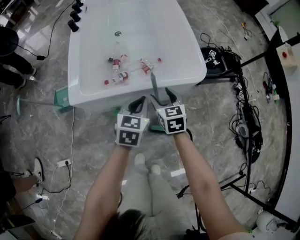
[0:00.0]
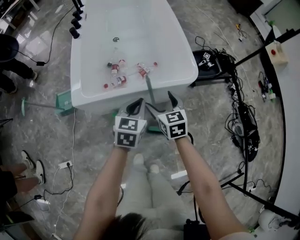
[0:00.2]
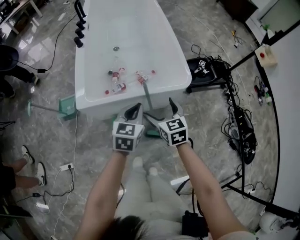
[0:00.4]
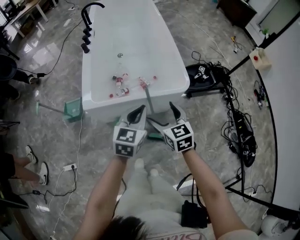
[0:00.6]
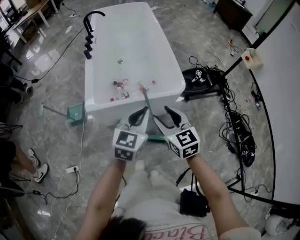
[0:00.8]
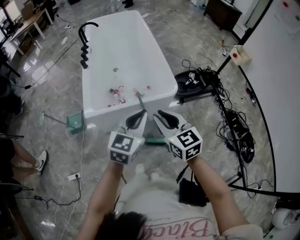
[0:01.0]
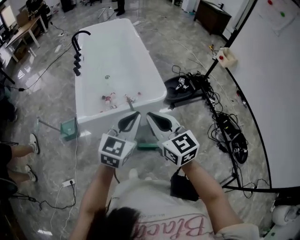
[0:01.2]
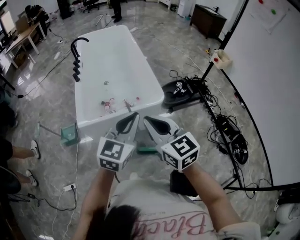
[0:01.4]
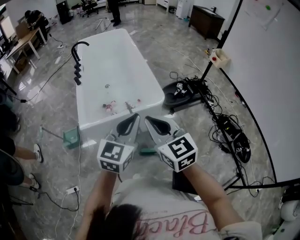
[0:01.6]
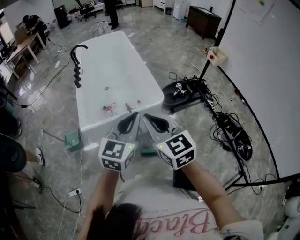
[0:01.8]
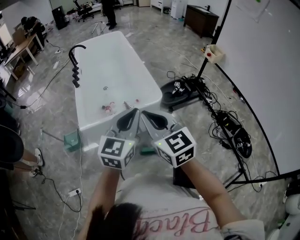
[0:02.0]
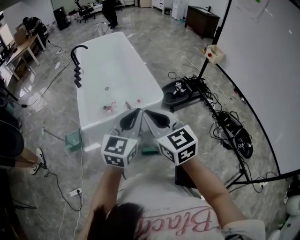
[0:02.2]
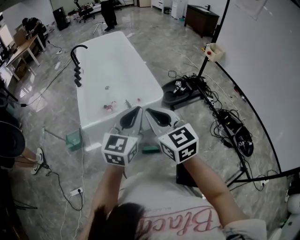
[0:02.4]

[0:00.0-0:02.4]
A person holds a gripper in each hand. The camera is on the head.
0:00.0 to 0:01.2: Both grippers travel together upward and backward, approximately 35 cm. The right gripper turns by roughly 30 degrees, and closes its fingers; the left gripper swivels about 30 degrees.
0:01.2 to 0:02.4: The left gripper shifts by approximately 5 cm. The right gripper moves roughly 5 cm.

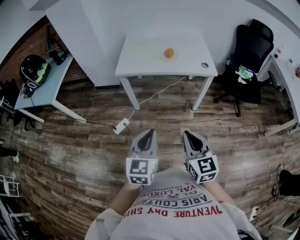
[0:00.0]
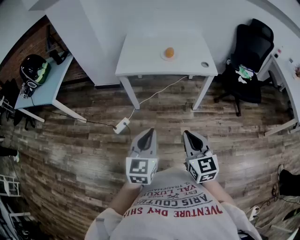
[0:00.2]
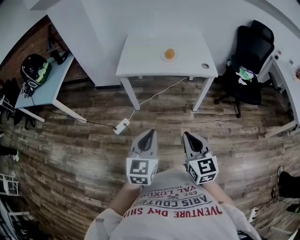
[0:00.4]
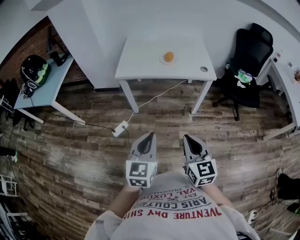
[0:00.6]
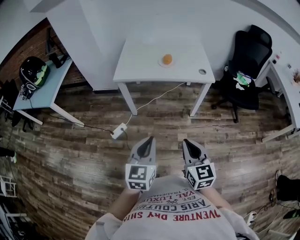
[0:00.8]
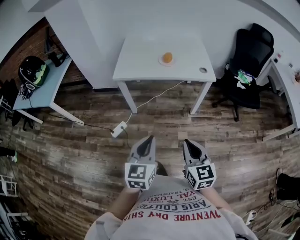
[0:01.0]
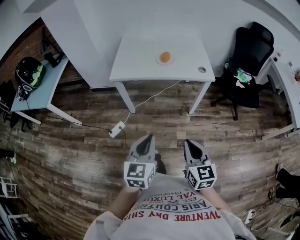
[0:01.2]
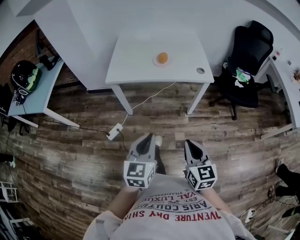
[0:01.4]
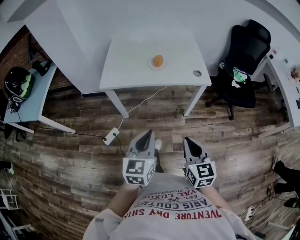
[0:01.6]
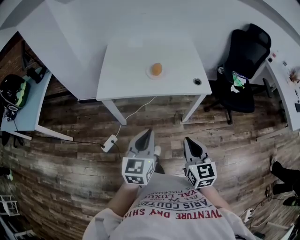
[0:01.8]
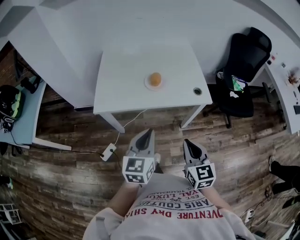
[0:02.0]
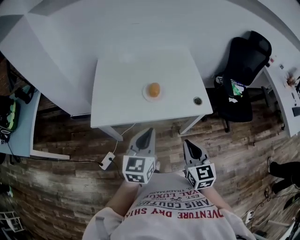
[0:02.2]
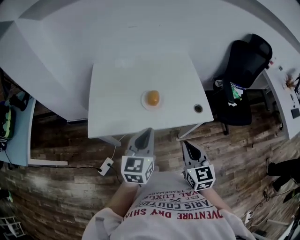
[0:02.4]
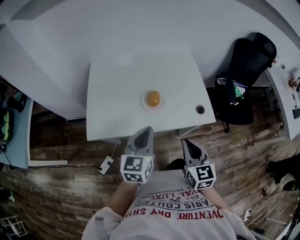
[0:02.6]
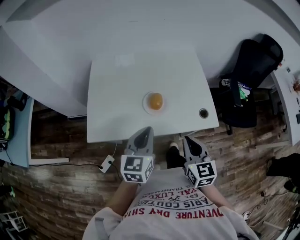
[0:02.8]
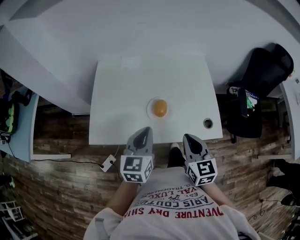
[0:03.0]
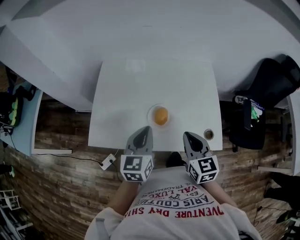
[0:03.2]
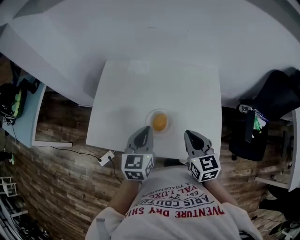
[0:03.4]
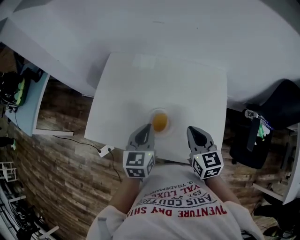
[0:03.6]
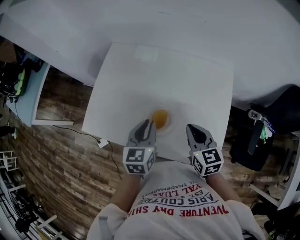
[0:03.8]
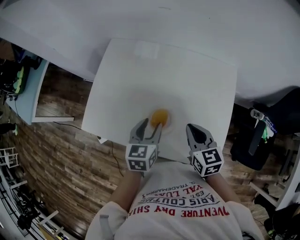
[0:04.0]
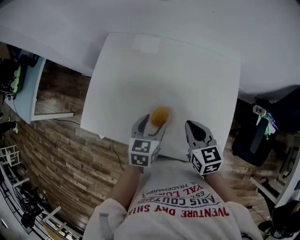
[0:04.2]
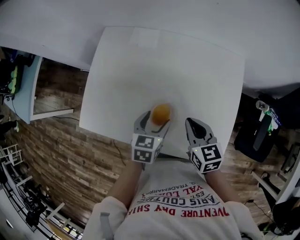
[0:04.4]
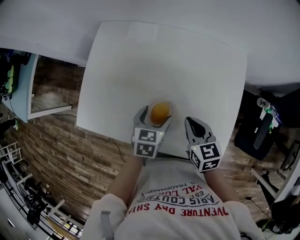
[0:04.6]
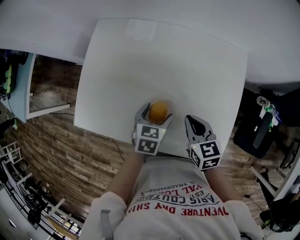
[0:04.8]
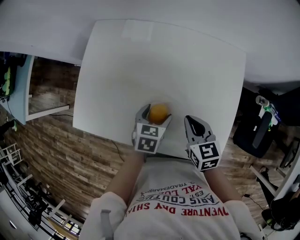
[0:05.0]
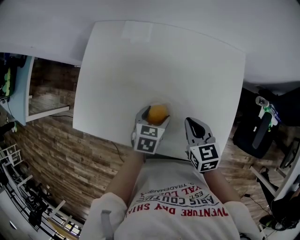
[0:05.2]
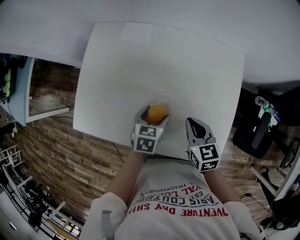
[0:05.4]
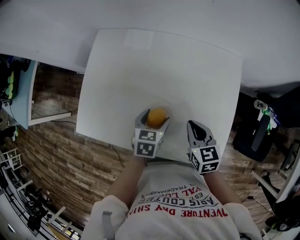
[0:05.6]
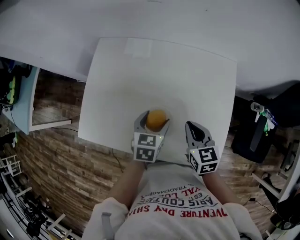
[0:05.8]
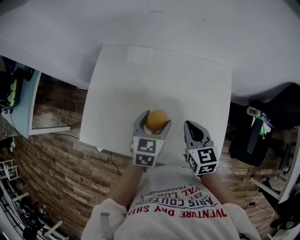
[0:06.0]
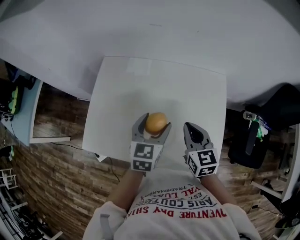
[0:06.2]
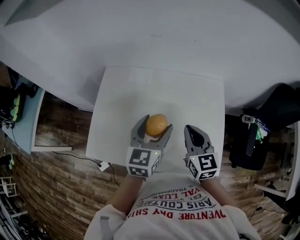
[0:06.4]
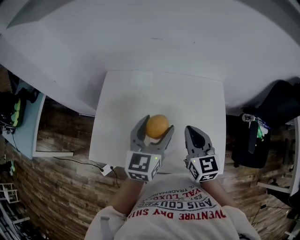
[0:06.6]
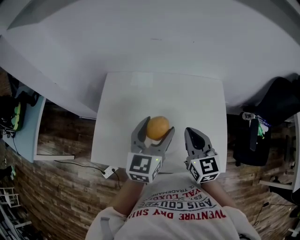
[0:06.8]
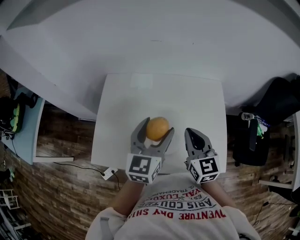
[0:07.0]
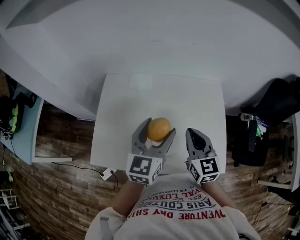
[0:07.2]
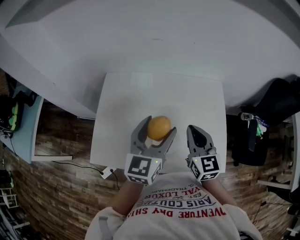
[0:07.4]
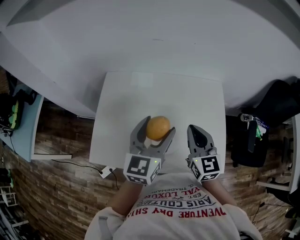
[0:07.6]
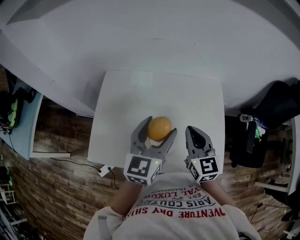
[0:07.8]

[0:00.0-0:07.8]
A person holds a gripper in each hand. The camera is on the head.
0:00.0 to 0:01.6: The right gripper goes about 10 cm forward and to the right. Meanwhile the left gripper is displaced forward by approximately 15 cm.
0:01.6 to 0:03.2: The pair of grippers is taken forward, about 50 cm.
0:03.2 to 0:04.6: Both grippers move downward and forward, about 20 cm. The right gripper changes its angle by roughly 20 degrees, while the left gripper rotates about 30 degrees, and opens up.
0:04.6 to 0:06.2: The grippers both shift upward by about 10 cm. The left gripper turns by approximately 20 degrees.
0:06.2 to 0:07.8: The left gripper moves upward, roughly 10 cm. Meanwhile the right gripper is displaced upward by approximately 5 cm.

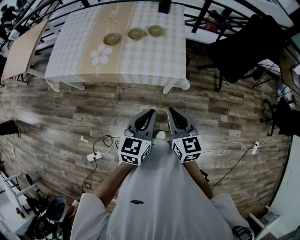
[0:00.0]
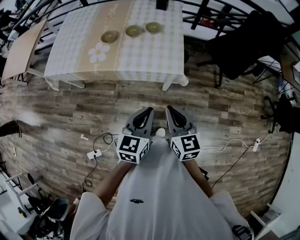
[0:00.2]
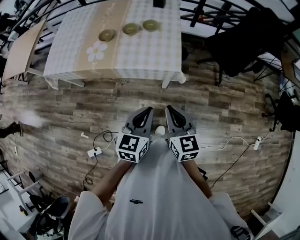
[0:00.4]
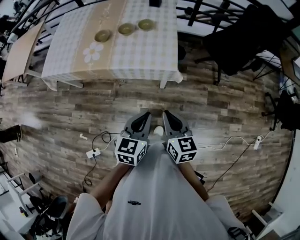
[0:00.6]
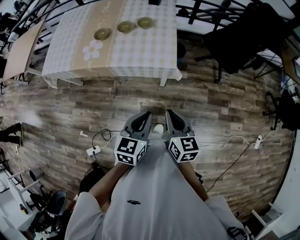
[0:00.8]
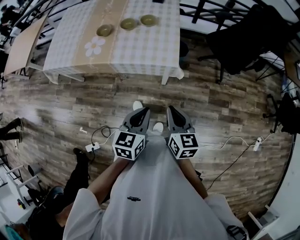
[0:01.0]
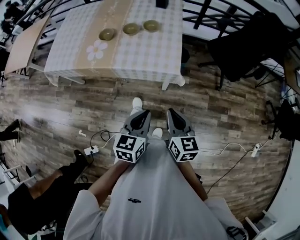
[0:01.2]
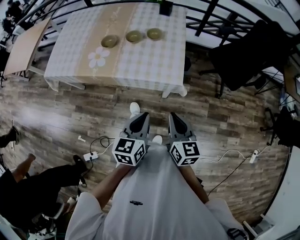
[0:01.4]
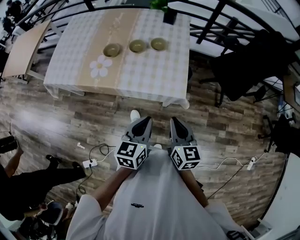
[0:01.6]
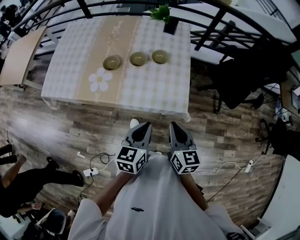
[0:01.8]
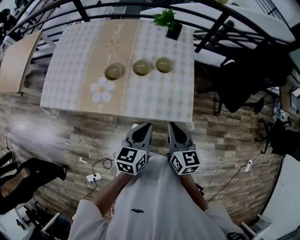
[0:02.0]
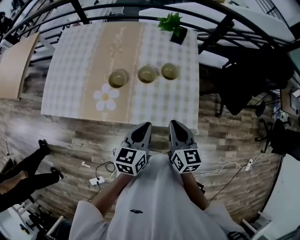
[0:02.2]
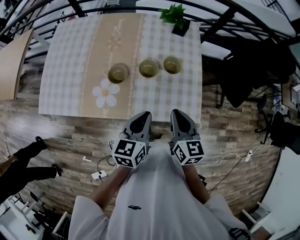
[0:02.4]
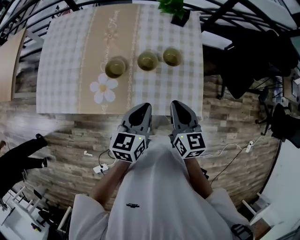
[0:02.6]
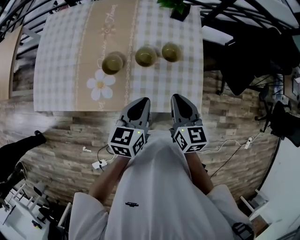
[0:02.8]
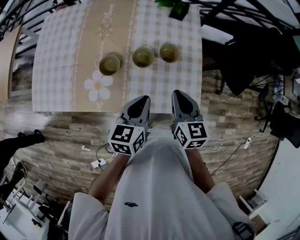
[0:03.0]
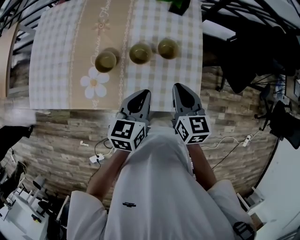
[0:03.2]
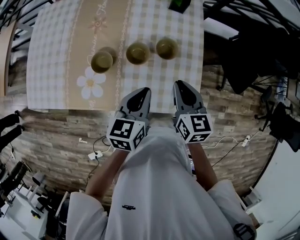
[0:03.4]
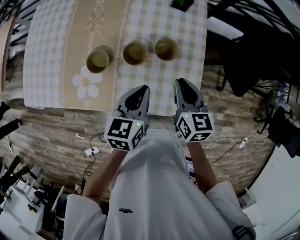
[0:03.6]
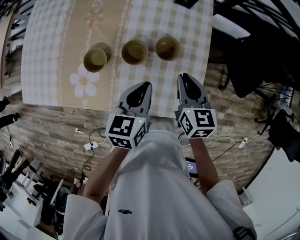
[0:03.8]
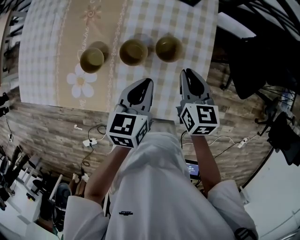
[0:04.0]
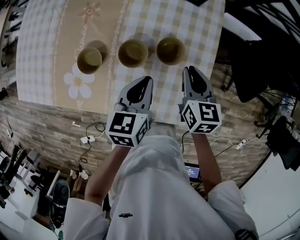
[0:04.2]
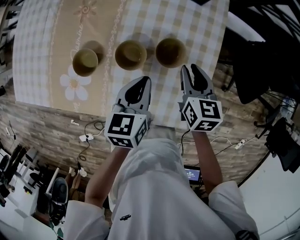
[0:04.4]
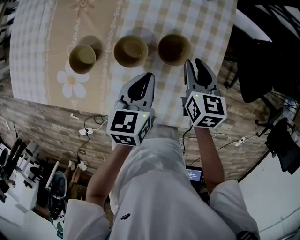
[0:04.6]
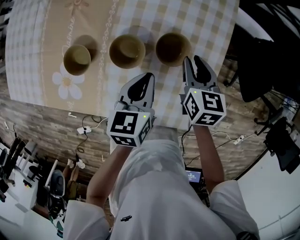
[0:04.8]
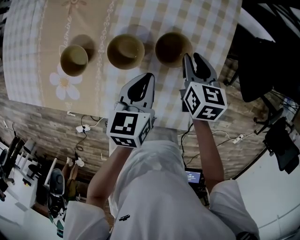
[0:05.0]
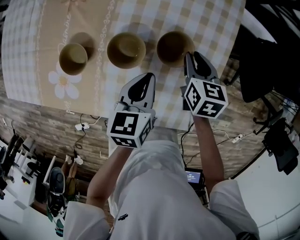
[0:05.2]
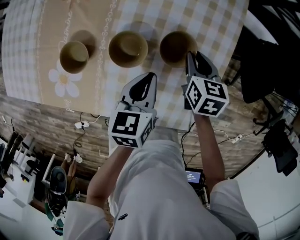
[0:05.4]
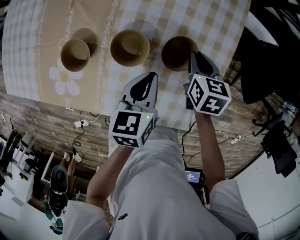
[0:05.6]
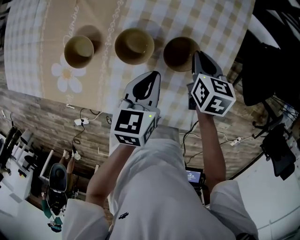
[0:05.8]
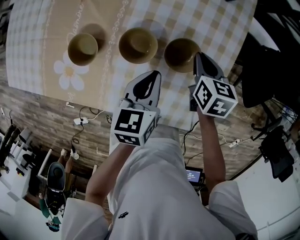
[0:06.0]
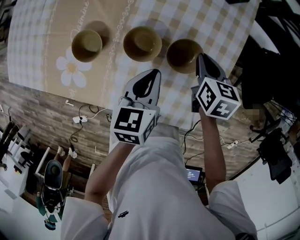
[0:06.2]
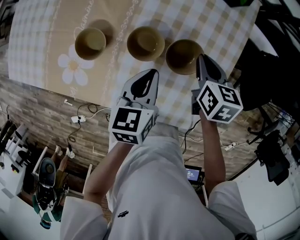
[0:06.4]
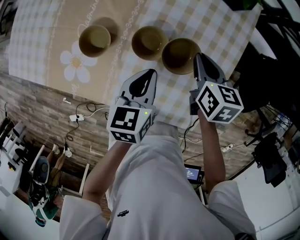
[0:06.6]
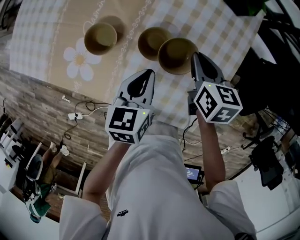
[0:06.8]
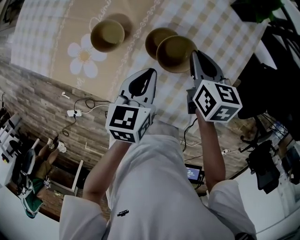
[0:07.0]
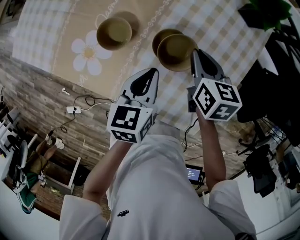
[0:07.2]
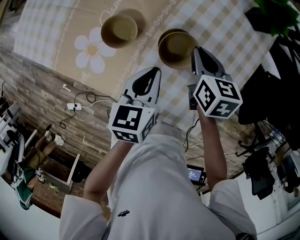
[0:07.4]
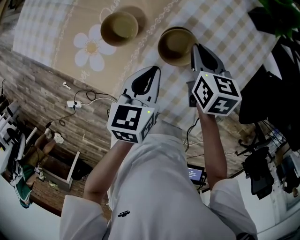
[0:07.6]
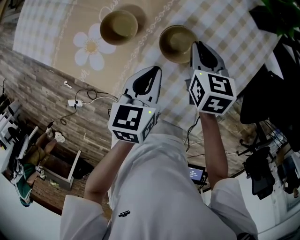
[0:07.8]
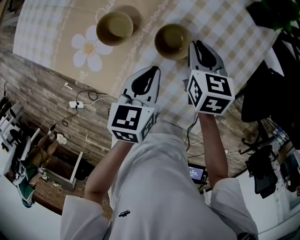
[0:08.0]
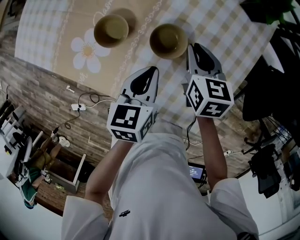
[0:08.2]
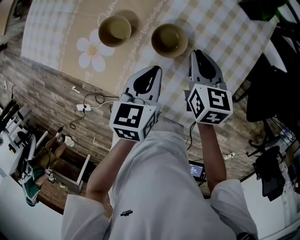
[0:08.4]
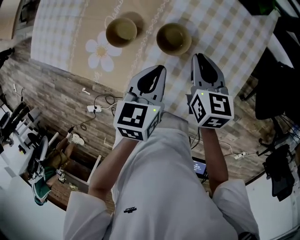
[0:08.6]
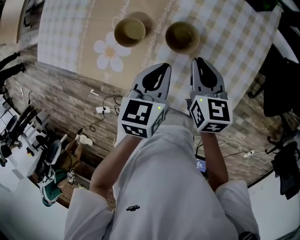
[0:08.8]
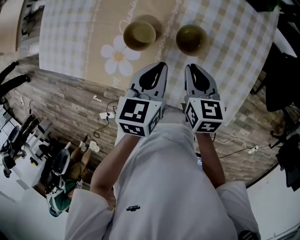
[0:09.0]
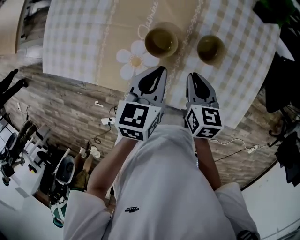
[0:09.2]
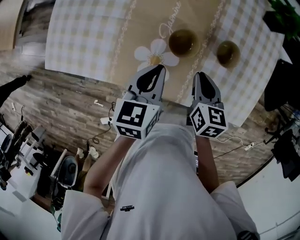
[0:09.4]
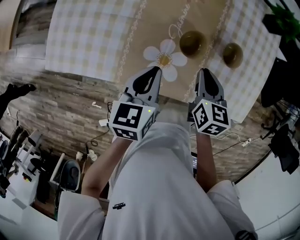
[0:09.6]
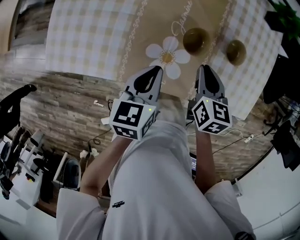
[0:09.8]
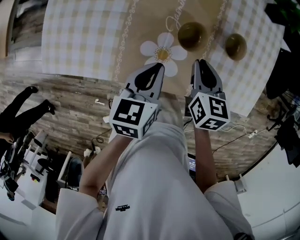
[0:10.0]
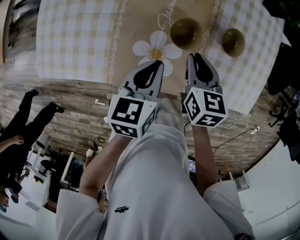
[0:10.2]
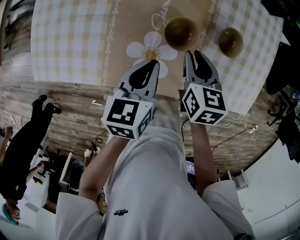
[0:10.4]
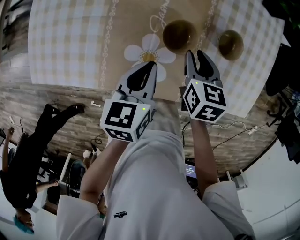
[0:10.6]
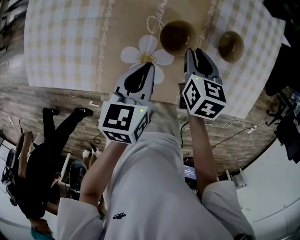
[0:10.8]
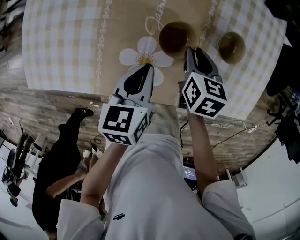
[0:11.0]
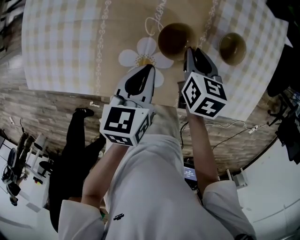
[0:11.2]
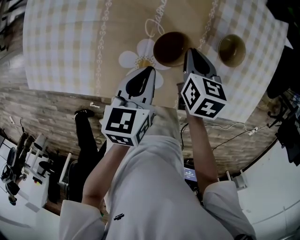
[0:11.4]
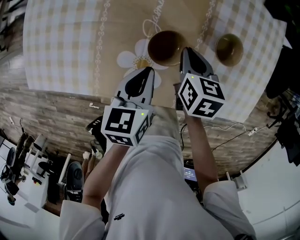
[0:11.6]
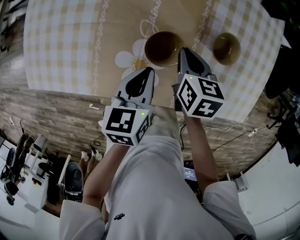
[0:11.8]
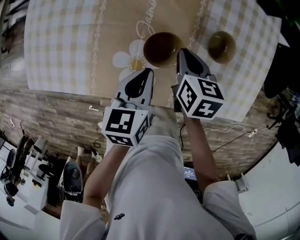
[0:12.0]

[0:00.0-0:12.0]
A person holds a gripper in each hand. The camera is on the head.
0:00.0 to 0:01.6: The two grippers go about 10 cm forward.
0:01.6 to 0:03.0: Both grippers move forward and to the left, some 35 cm.
0:03.0 to 0:04.4: Both grippers move forward and downward, about 25 cm.
0:04.4 to 0:06.0: Both grippers move downward, some 10 cm.
0:06.0 to 0:07.6: Both grippers move to the left, about 15 cm.
0:07.6 to 0:09.0: The right gripper shifts approximately 10 cm backward and to the left. Meanwhile the left gripper moves upward, about 5 cm.
0:09.0 to 0:10.4: The two grippers go about 20 cm to the left.
0:10.4 to 0:12.0: The right gripper ends up about 5 cm from where it was.

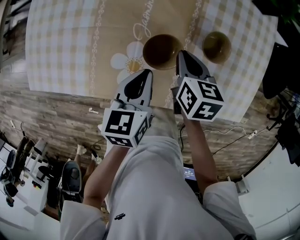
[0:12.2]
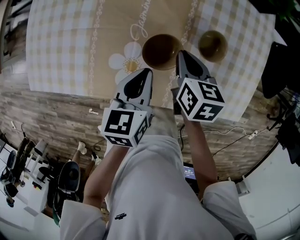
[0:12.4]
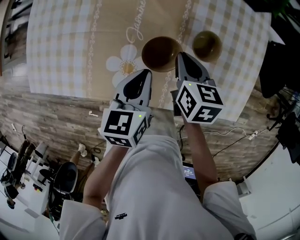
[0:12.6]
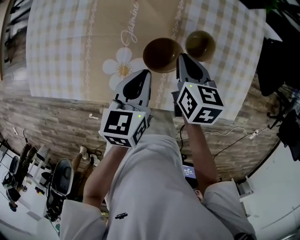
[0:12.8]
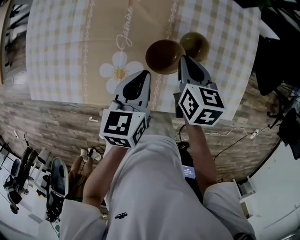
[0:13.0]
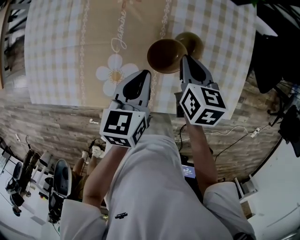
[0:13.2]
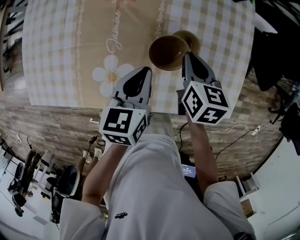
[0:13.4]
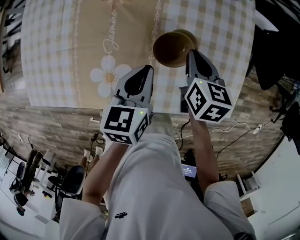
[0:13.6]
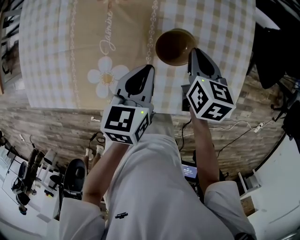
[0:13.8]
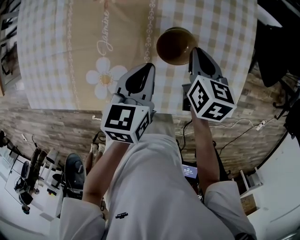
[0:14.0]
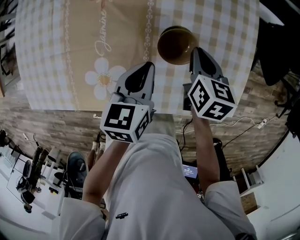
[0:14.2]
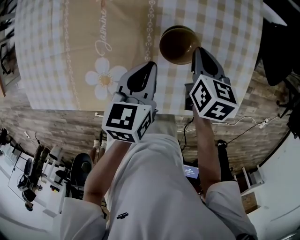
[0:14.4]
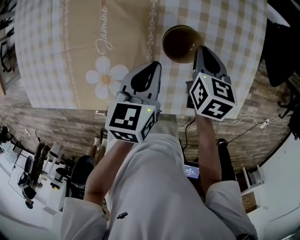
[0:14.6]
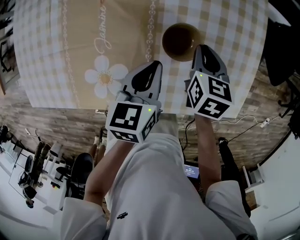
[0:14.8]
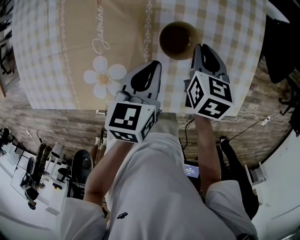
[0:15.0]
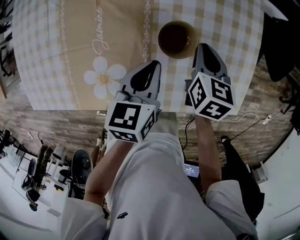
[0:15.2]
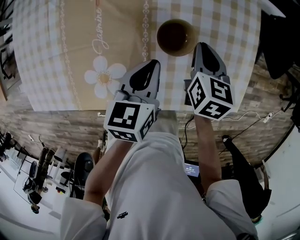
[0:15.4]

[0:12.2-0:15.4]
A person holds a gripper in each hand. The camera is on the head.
0:12.2 to 0:13.8: The left gripper shifts roughly 15 cm to the right and forward. Meanwhile the right gripper moves to the right, about 15 cm.
